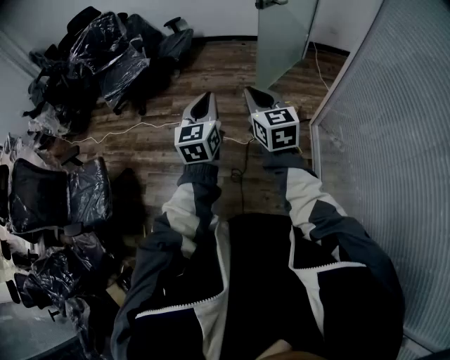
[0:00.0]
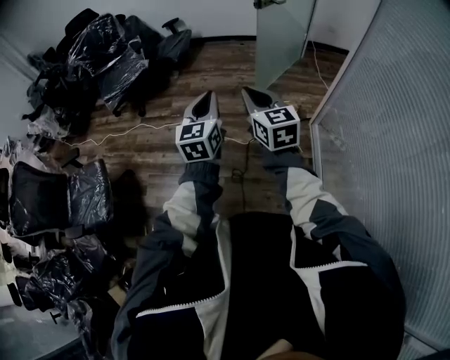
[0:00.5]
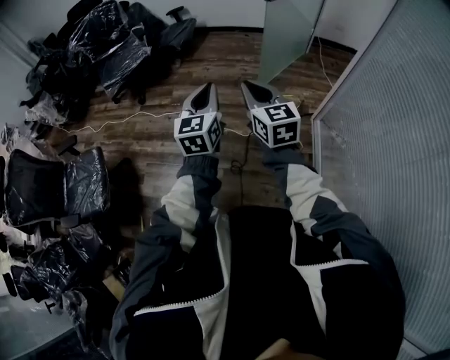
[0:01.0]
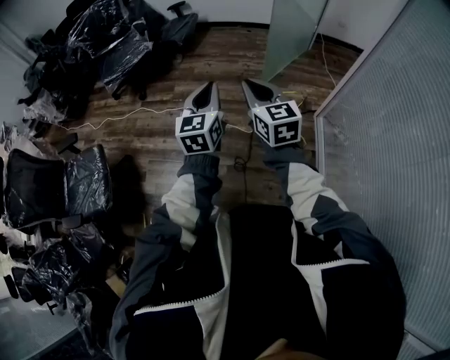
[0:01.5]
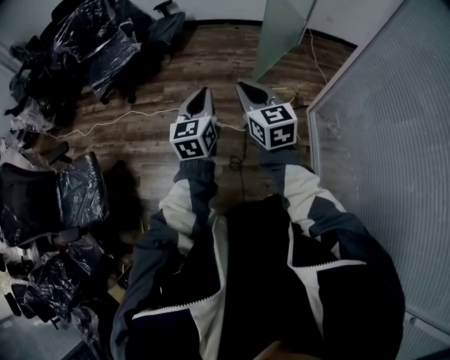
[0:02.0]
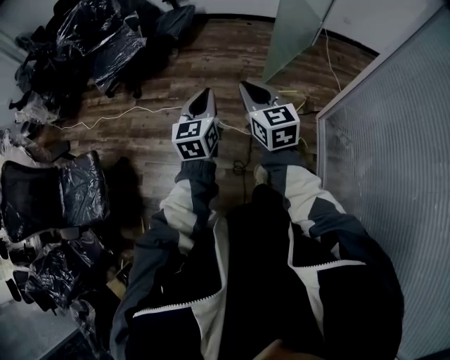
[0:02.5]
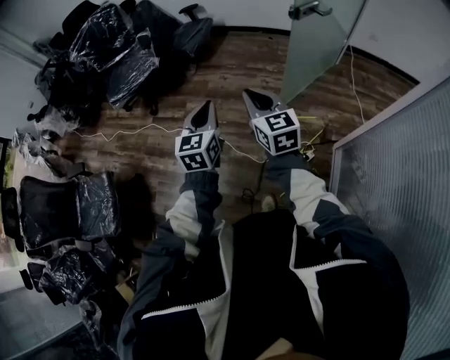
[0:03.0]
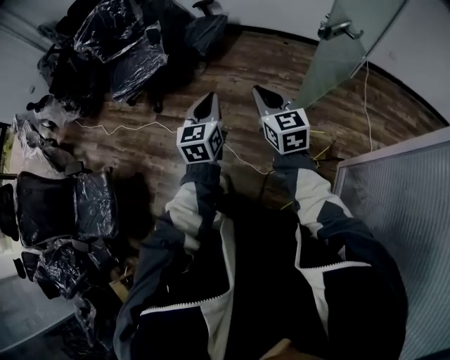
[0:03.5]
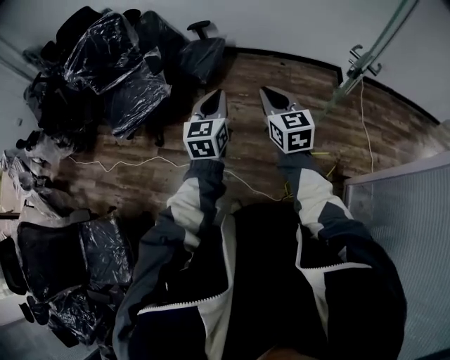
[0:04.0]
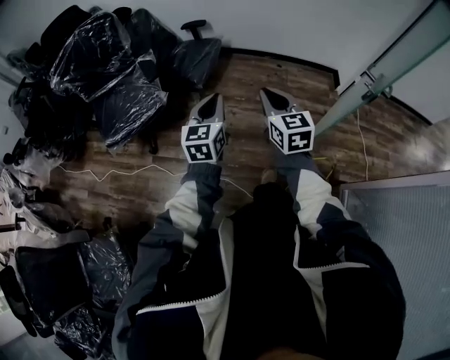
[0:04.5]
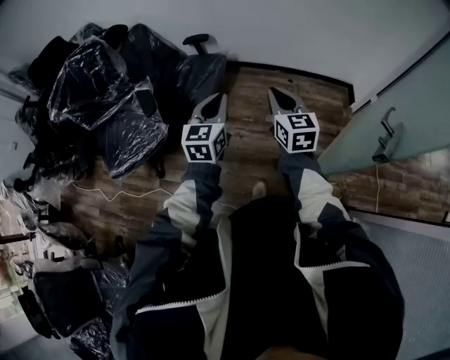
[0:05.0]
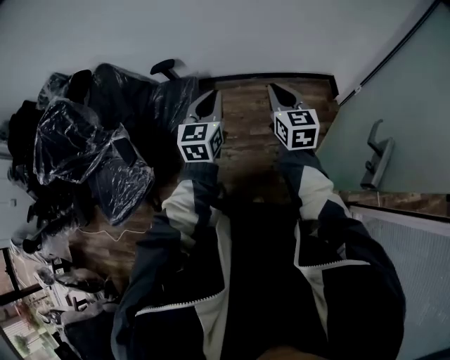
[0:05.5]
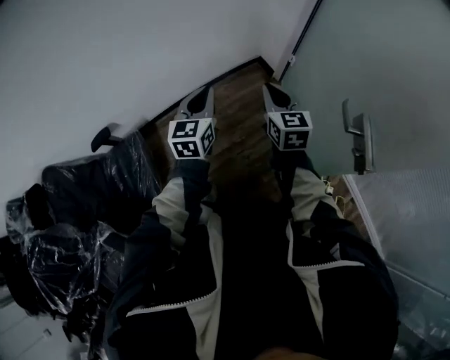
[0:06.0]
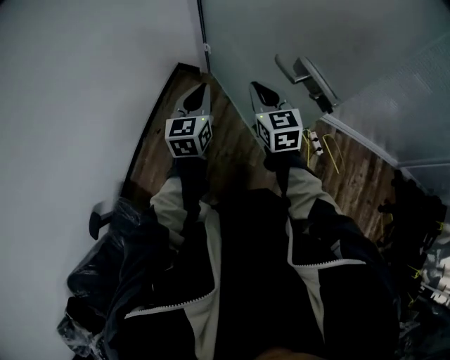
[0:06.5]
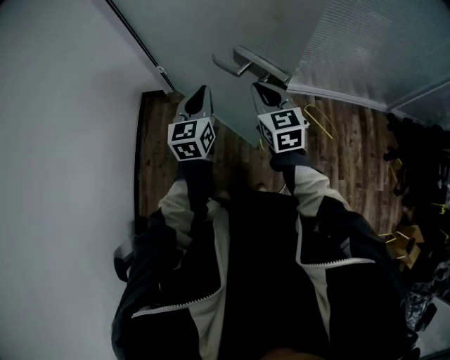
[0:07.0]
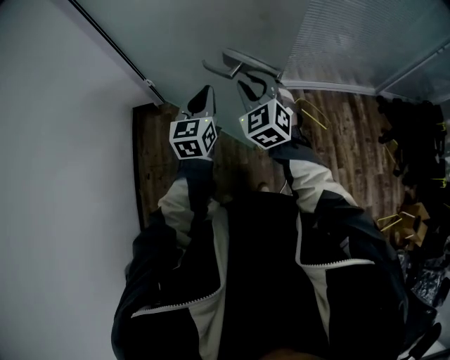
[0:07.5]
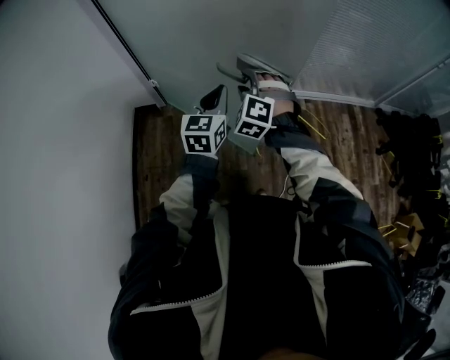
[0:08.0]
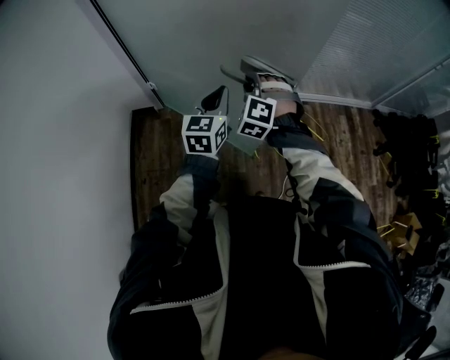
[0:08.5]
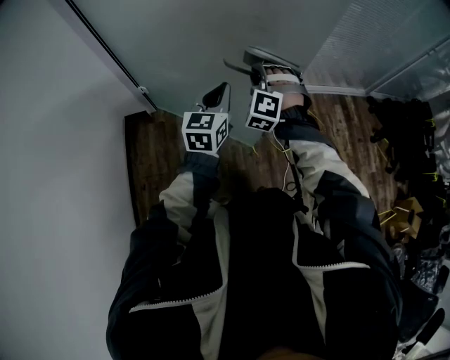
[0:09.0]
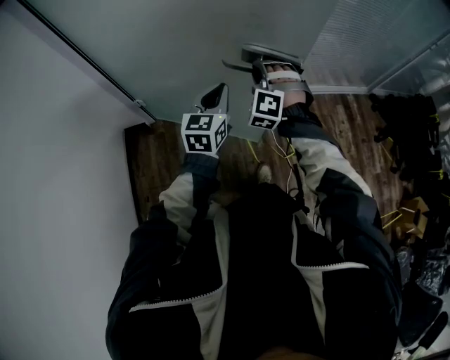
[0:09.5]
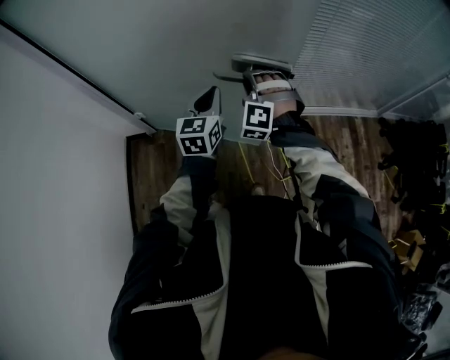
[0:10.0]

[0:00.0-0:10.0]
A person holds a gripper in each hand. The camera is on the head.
0:00.0 to 0:02.0: The right gripper heads to the left, covering some 10 cm, while the left gripper shifts some 10 cm to the left and downward.
0:02.0 to 0:04.0: The two grippers travel together, forward, approximately 50 cm.
0:04.0 to 0:06.0: The pair of grippers is taken about 60 cm. The right gripper turns by approximately 50 degrees. Meanwhile the left gripper changes its angle by approximately 40 degrees.
0:06.0 to 0:08.0: The left gripper shifts by about 35 cm, and swivels roughly 60 degrees; the right gripper ends up approximately 25 cm from where it was, rotates roughly 80 degrees, and opens its fingers.
0:08.0 to 0:10.0: The two grippers go about 25 cm forward.

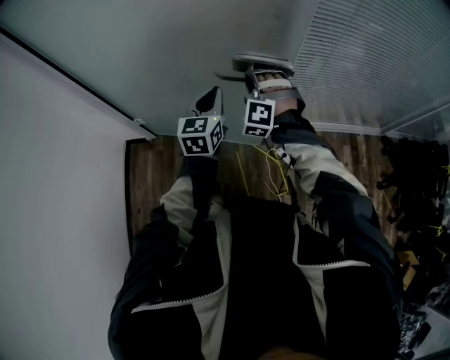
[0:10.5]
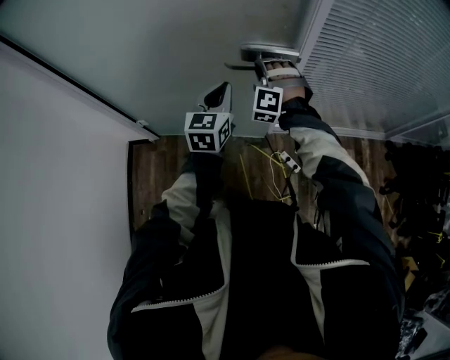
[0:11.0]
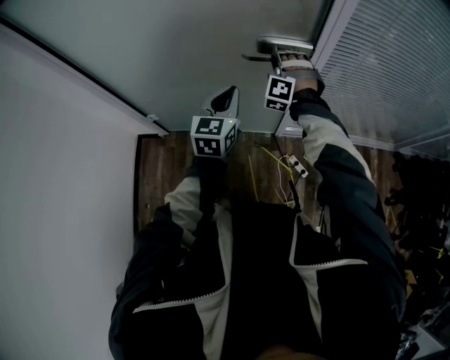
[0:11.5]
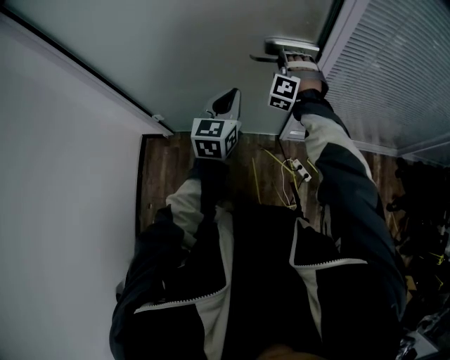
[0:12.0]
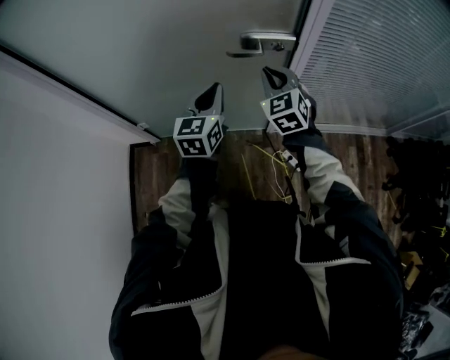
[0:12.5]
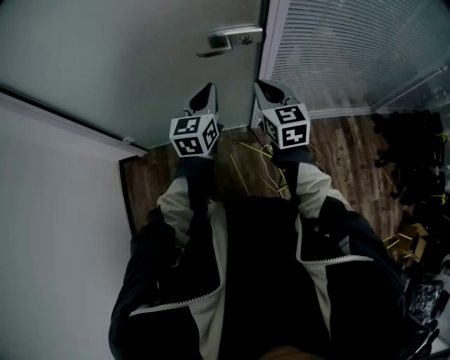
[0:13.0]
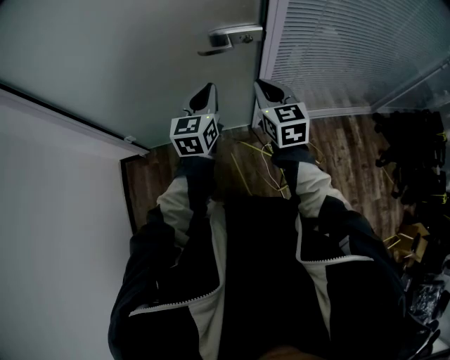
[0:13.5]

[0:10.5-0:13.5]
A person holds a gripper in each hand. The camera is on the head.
0:10.5 to 0:12.0: The right gripper moves forward, roughly 15 cm.
0:12.0 to 0:13.5: The right gripper heads backward, covering roughly 20 cm, rolls clockwise, seen from behind, by some 80 degrees, and closes up, while the left gripper travels to the right by approximately 5 cm.

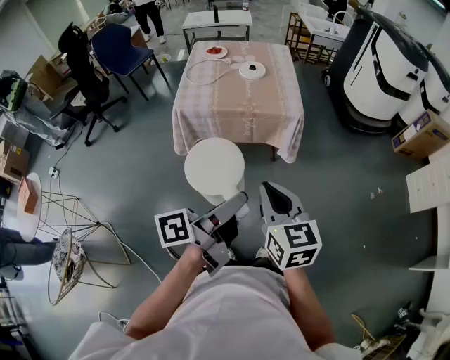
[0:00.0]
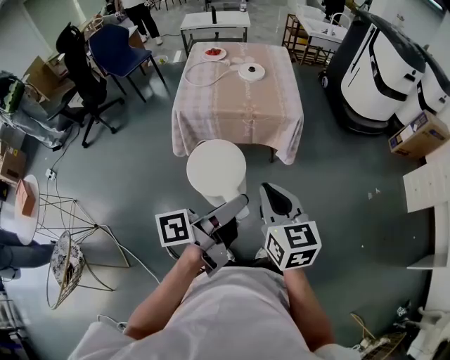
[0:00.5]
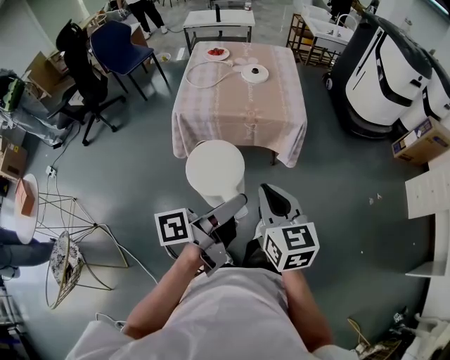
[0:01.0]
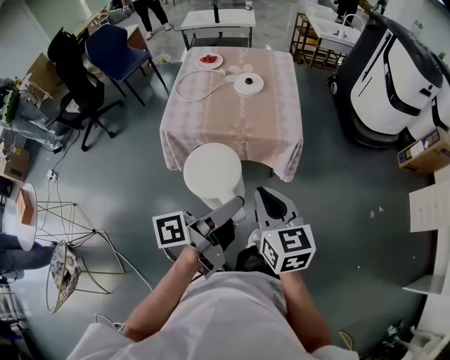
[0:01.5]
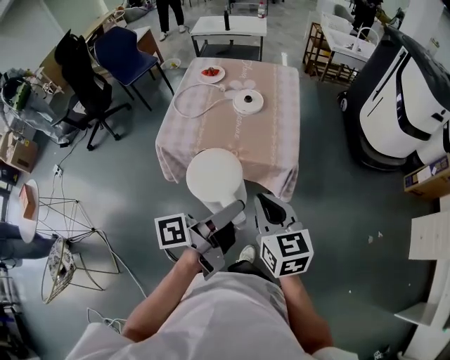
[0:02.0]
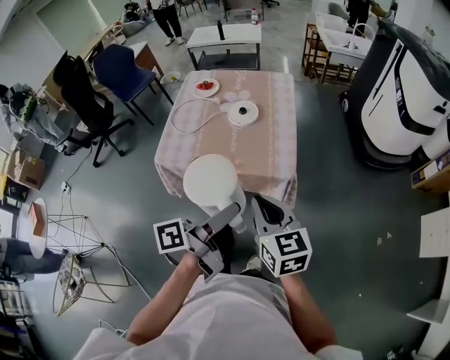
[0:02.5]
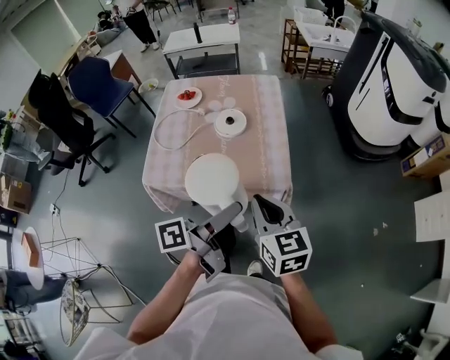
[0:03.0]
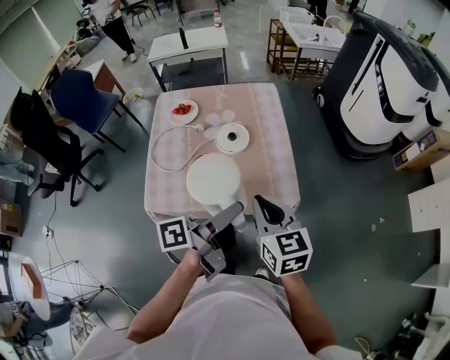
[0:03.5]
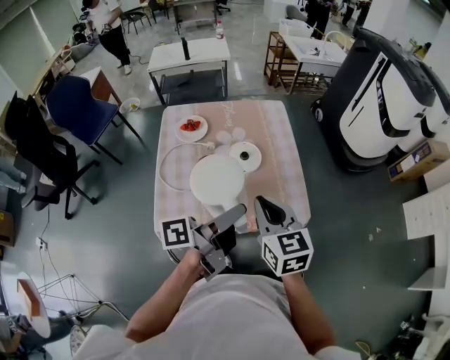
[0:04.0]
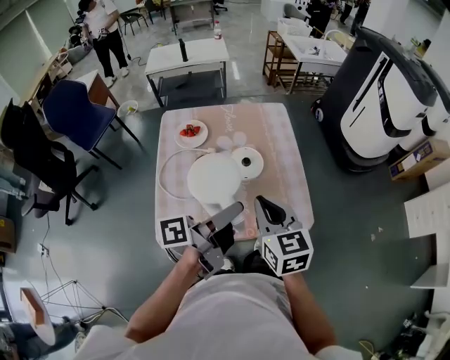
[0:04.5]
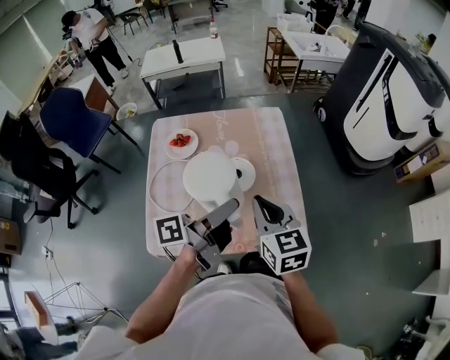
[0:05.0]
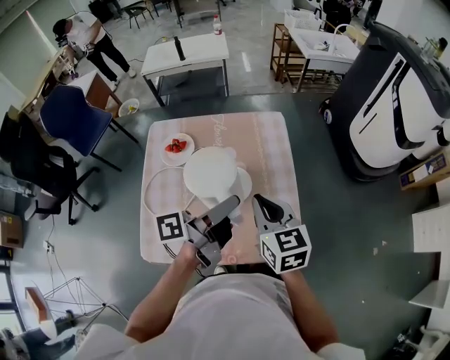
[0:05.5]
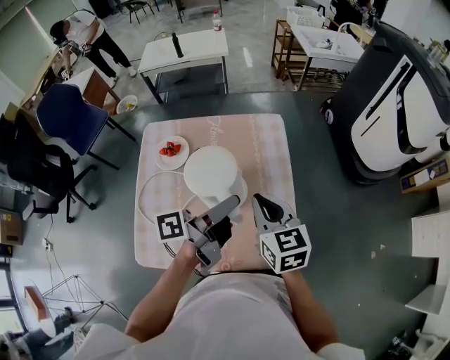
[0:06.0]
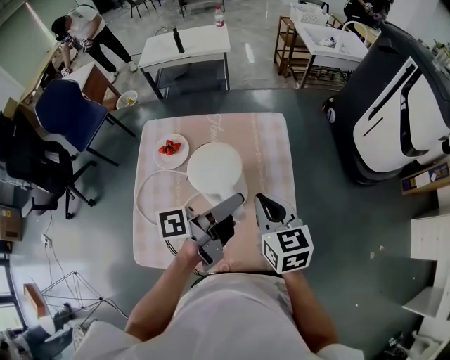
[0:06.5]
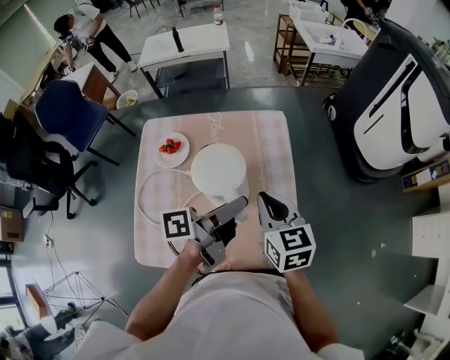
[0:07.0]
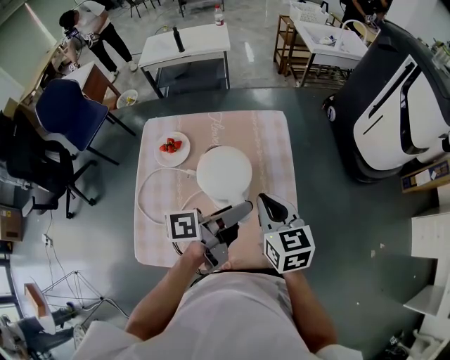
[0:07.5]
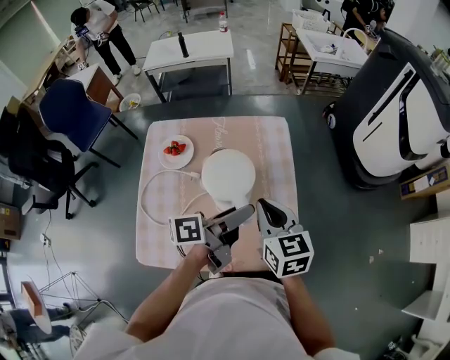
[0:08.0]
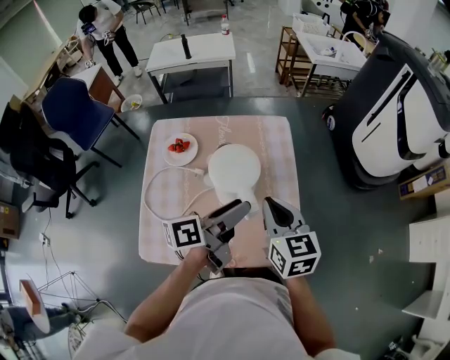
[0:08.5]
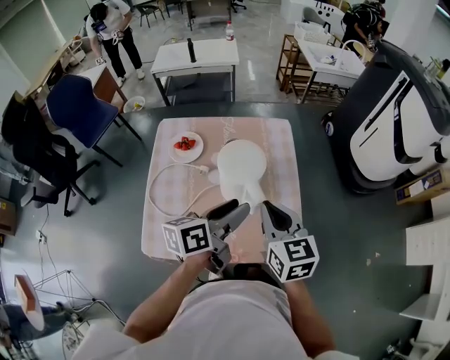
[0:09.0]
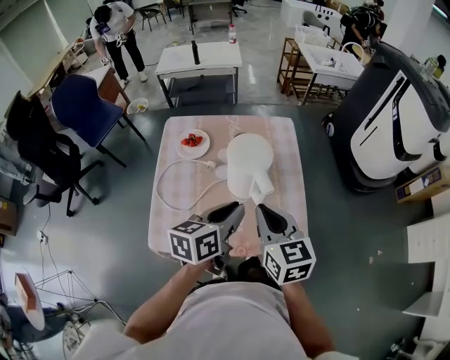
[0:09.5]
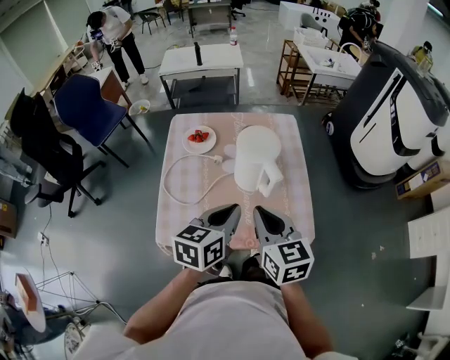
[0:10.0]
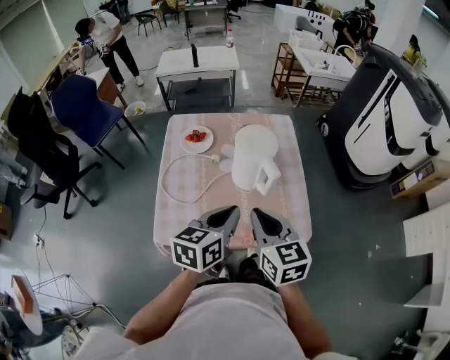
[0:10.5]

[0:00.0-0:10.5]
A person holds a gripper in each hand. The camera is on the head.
0:00.0 to 0:02.0: The right gripper moves roughly 25 cm.
0:02.0 to 0:04.0: The right gripper changes place by some 25 cm.
0:04.0 to 0:06.5: The right gripper ends up roughly 20 cm from where it was.
0:08.5 to 0:10.5: The right gripper moves about 15 cm.

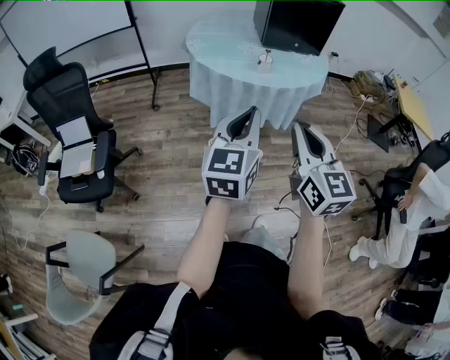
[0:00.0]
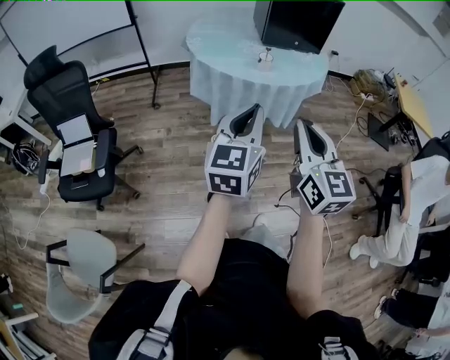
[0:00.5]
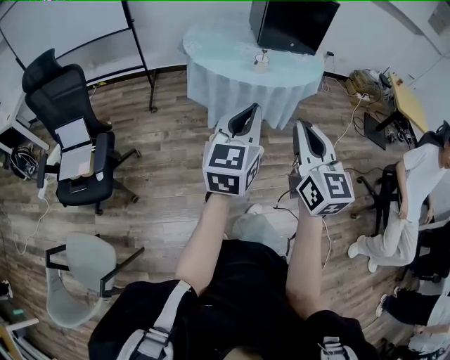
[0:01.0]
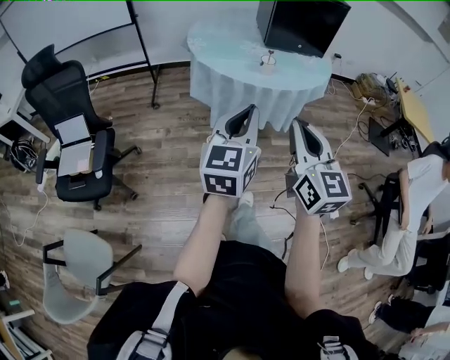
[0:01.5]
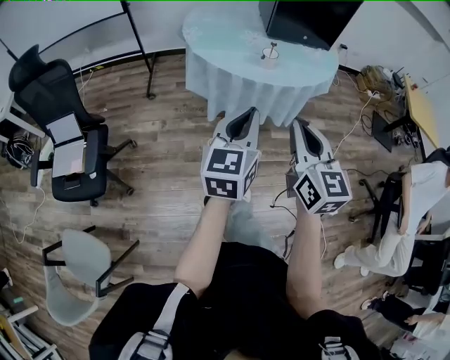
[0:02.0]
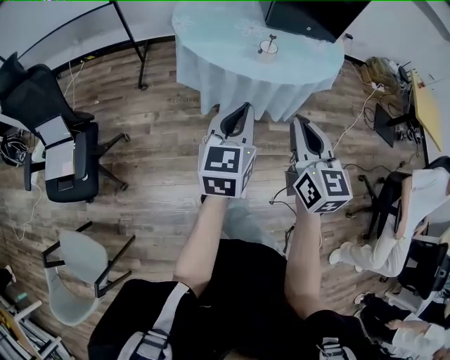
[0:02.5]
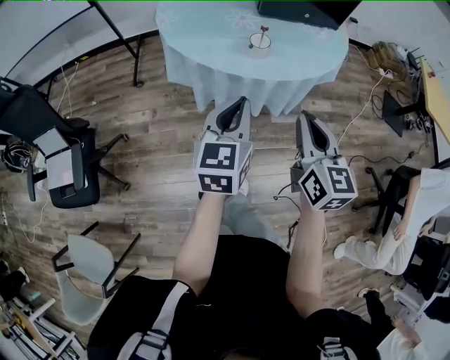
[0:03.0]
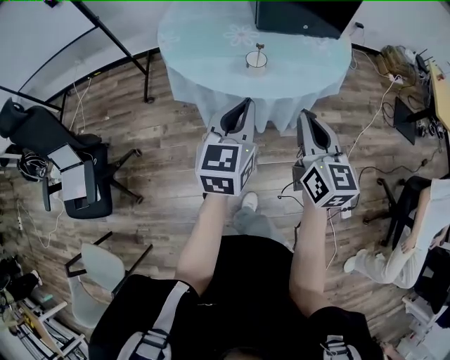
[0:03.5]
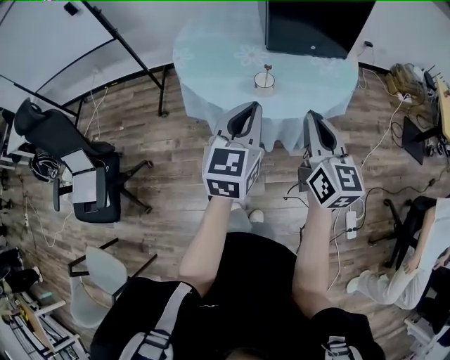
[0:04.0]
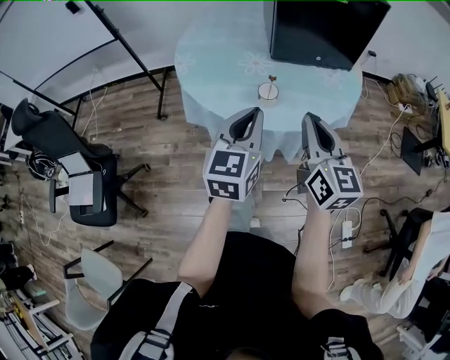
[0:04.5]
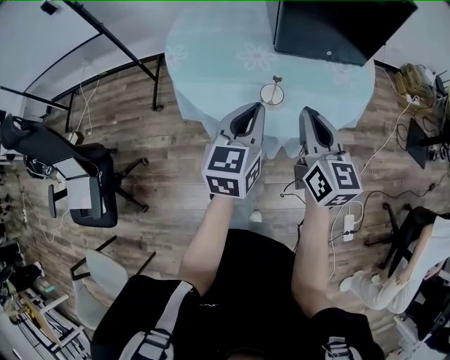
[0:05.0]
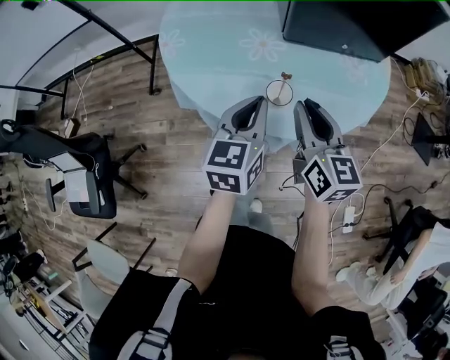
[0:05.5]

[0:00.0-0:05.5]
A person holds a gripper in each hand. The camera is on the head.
0:00.0 to 0:02.0: Both grippers move forward, about 10 cm.
0:02.0 to 0:03.5: The two grippers go roughly 25 cm forward and to the right.
0:03.5 to 0:05.5: Both grippers travel together forward, some 20 cm.
